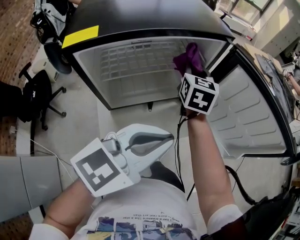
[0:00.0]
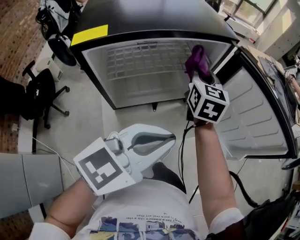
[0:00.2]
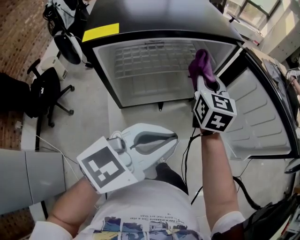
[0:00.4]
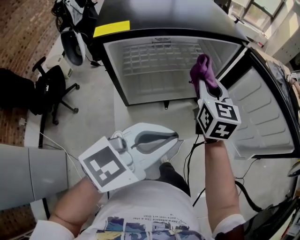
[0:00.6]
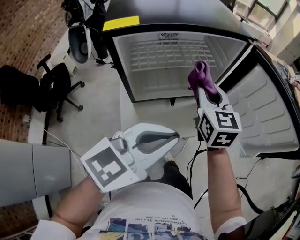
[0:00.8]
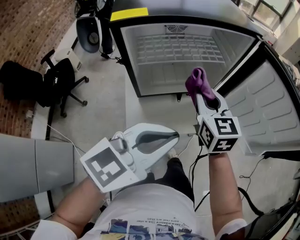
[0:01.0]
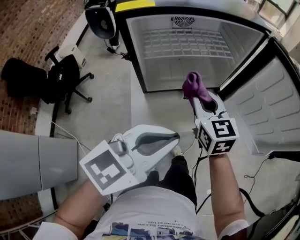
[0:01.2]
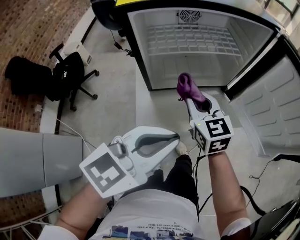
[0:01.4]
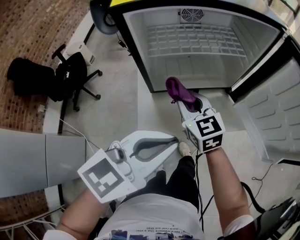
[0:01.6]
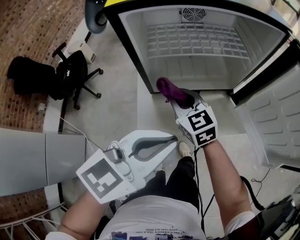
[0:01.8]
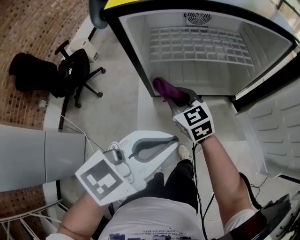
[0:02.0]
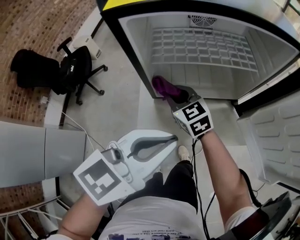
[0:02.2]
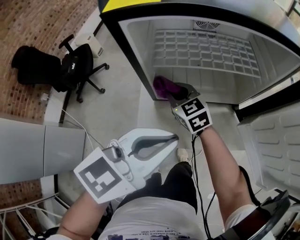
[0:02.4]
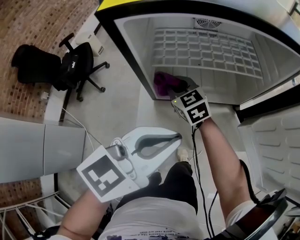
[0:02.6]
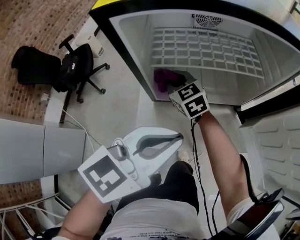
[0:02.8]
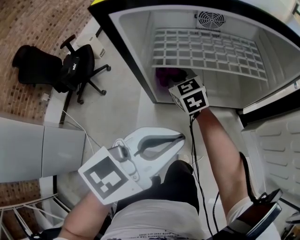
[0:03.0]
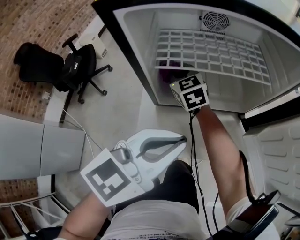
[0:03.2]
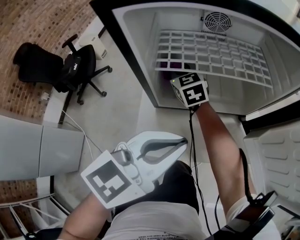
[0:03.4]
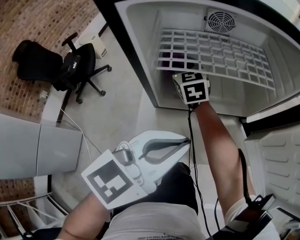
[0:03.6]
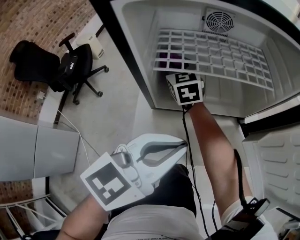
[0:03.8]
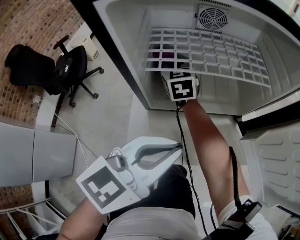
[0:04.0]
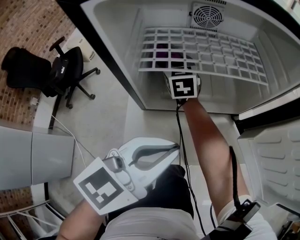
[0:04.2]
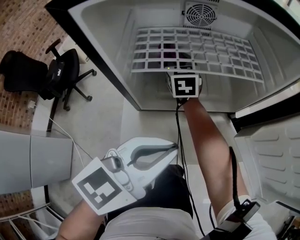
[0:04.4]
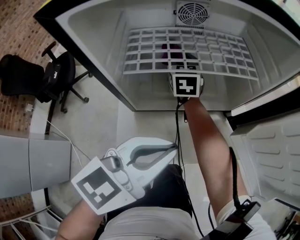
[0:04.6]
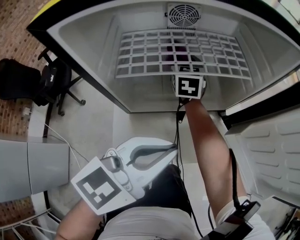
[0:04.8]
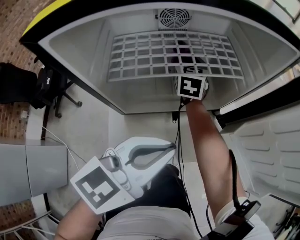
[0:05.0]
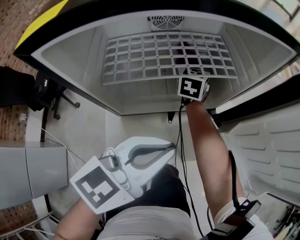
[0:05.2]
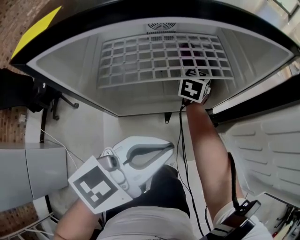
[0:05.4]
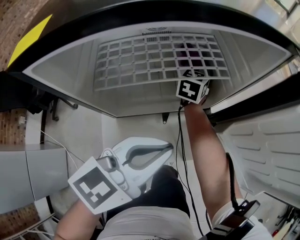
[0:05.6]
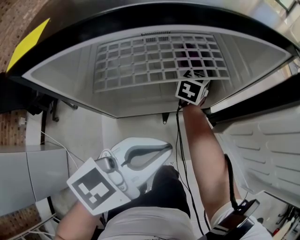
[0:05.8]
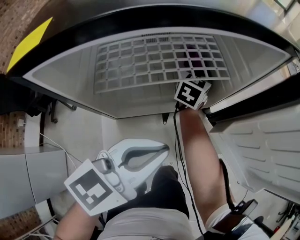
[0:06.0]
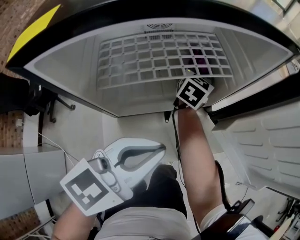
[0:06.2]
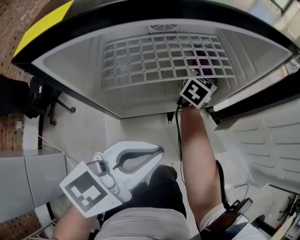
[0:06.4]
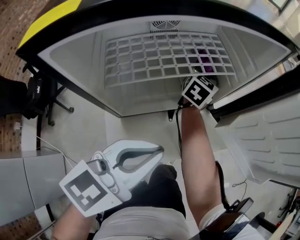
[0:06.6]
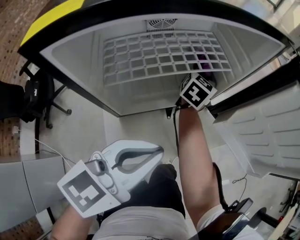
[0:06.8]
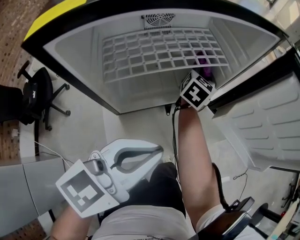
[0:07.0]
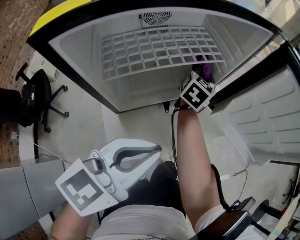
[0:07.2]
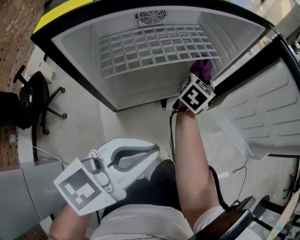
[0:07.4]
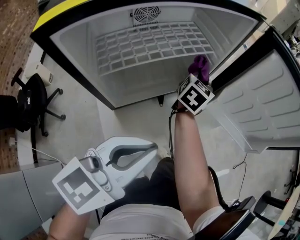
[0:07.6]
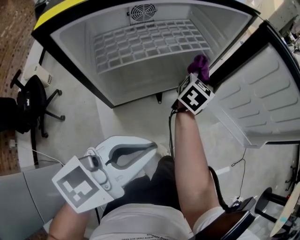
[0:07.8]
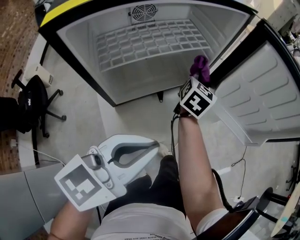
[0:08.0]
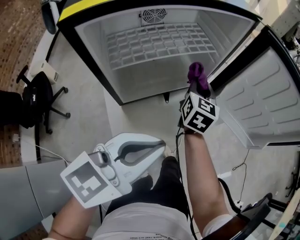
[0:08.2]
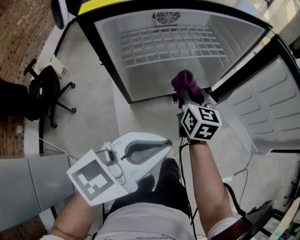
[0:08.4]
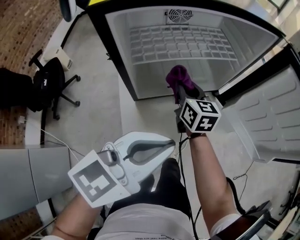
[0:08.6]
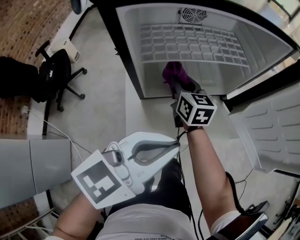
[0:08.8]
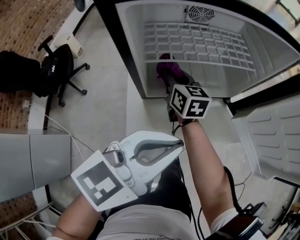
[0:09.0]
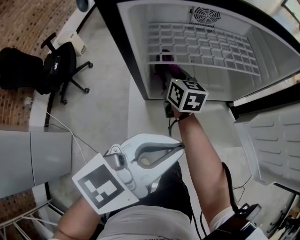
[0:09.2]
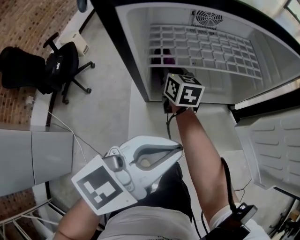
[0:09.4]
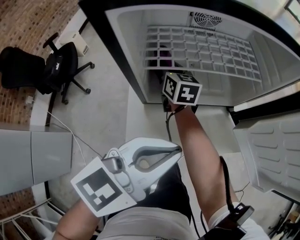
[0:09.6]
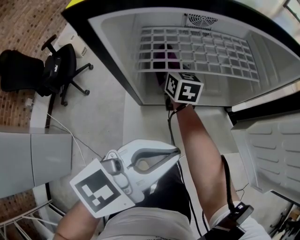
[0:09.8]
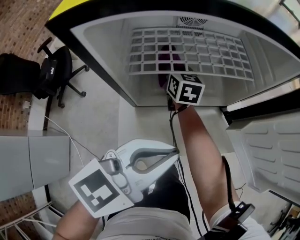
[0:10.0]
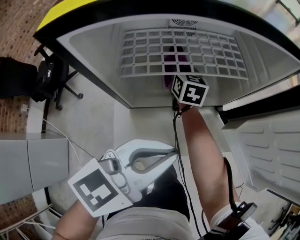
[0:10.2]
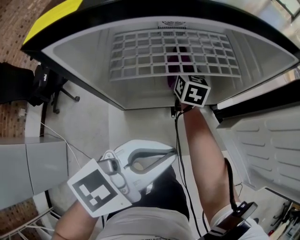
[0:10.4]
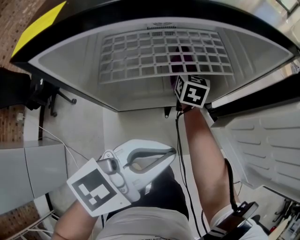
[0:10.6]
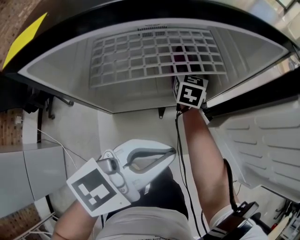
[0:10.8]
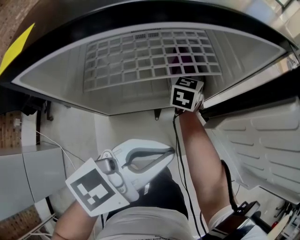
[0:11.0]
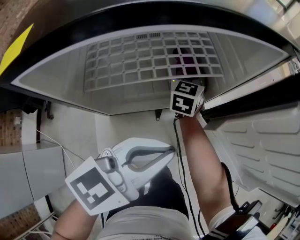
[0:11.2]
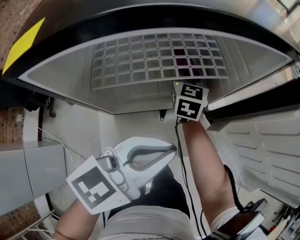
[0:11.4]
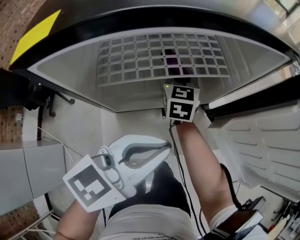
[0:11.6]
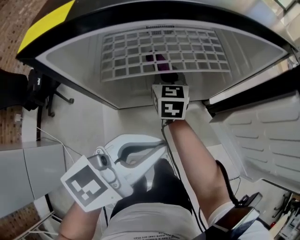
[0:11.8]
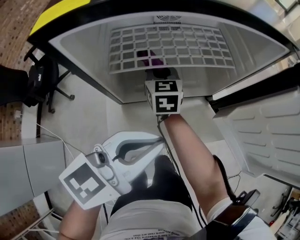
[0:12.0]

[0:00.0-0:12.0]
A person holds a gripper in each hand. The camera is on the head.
0:00.0 to 0:01.6: The right gripper ends up approximately 30 cm from where it was, and turns by approximately 40 degrees. The left gripper changes place by some 10 cm.
0:01.6 to 0:03.0: The right gripper shifts about 20 cm forward and to the left. Meanwhile the left gripper goes about 10 cm forward.
0:03.0 to 0:04.4: The right gripper goes roughly 10 cm forward and to the right, and changes its angle by roughly 30 degrees.
0:04.4 to 0:06.0: The right gripper travels to the right and forward by roughly 20 cm, and turns by about 40 degrees. Meanwhile the left gripper moves roughly 5 cm.
0:06.0 to 0:07.6: The right gripper goes some 15 cm to the right, and rotates approximately 20 degrees. The left gripper travels backward by about 10 cm.
0:07.6 to 0:09.0: The right gripper shifts by about 30 cm, and changes its angle by approximately 60 degrees.
0:09.0 to 0:10.4: The left gripper ends up some 5 cm from where it was. The right gripper travels forward and to the right by some 15 cm.
0:10.4 to 0:12.0: The right gripper travels backward and to the left by roughly 10 cm.

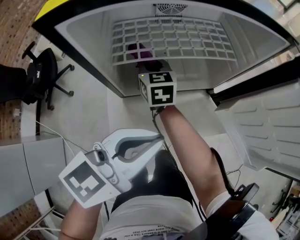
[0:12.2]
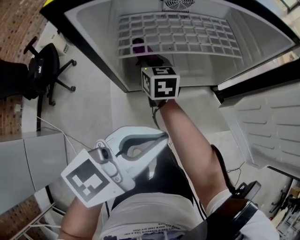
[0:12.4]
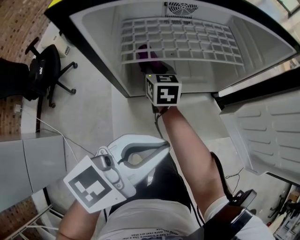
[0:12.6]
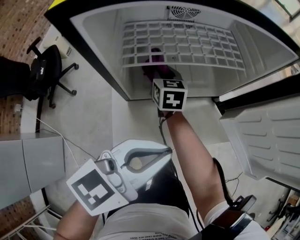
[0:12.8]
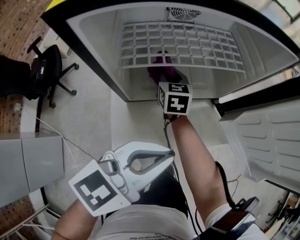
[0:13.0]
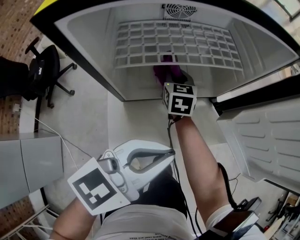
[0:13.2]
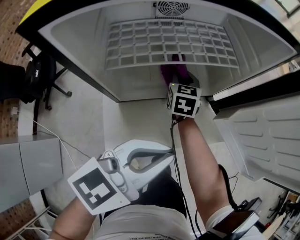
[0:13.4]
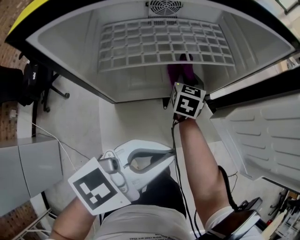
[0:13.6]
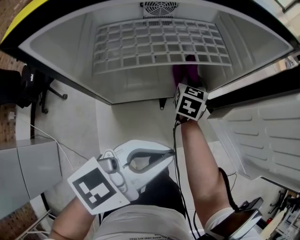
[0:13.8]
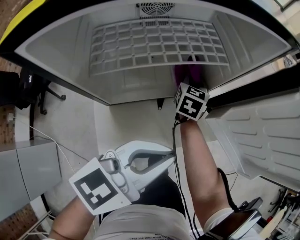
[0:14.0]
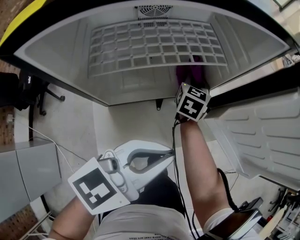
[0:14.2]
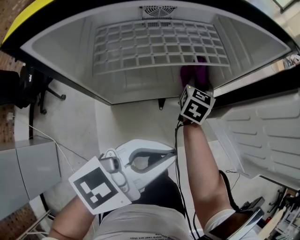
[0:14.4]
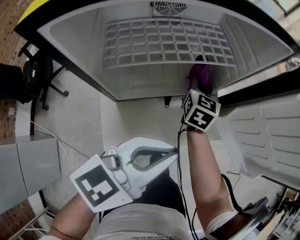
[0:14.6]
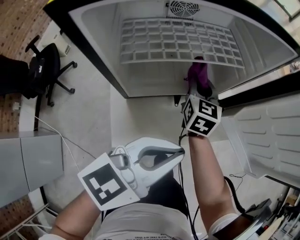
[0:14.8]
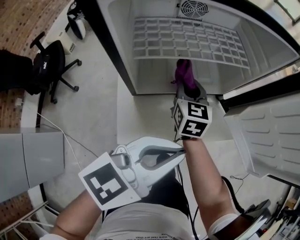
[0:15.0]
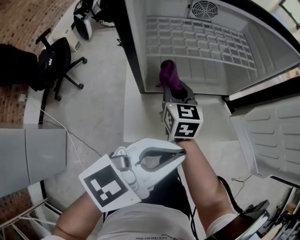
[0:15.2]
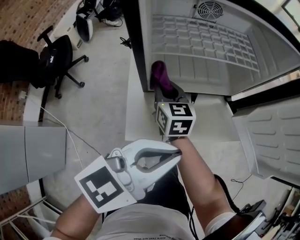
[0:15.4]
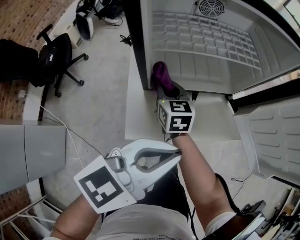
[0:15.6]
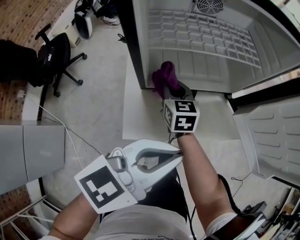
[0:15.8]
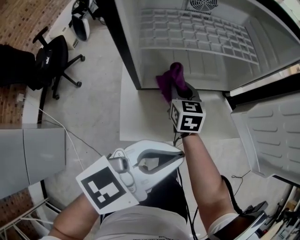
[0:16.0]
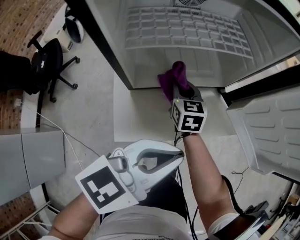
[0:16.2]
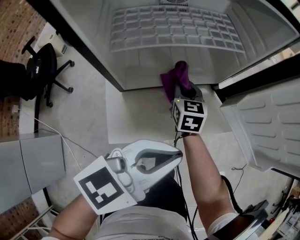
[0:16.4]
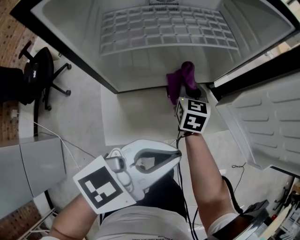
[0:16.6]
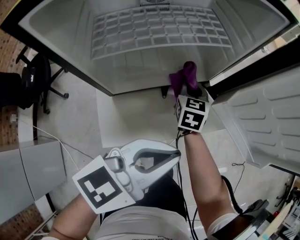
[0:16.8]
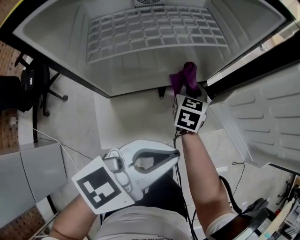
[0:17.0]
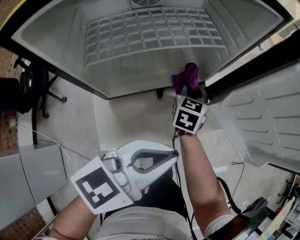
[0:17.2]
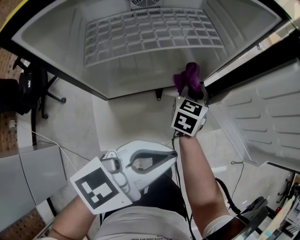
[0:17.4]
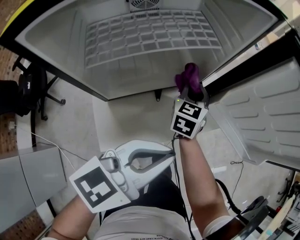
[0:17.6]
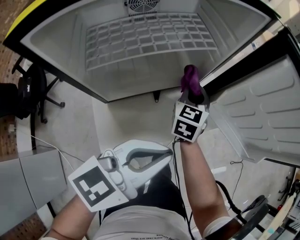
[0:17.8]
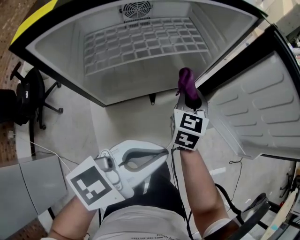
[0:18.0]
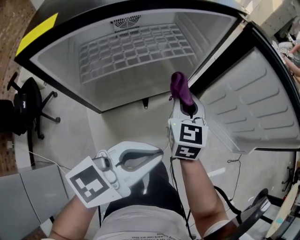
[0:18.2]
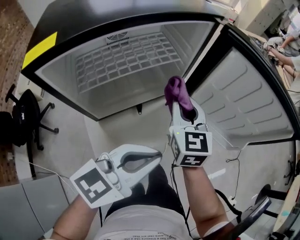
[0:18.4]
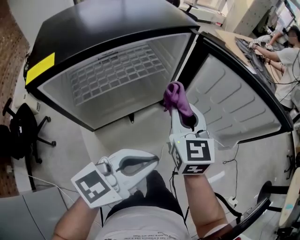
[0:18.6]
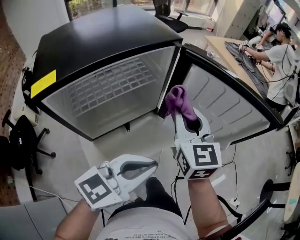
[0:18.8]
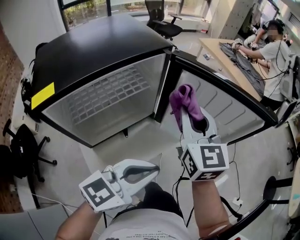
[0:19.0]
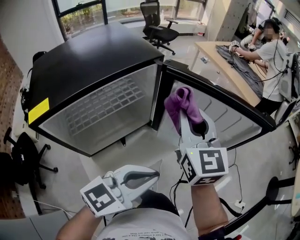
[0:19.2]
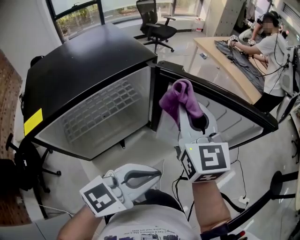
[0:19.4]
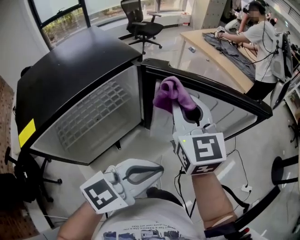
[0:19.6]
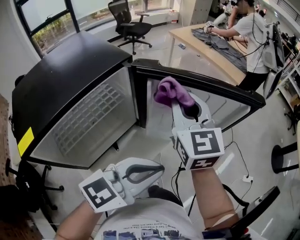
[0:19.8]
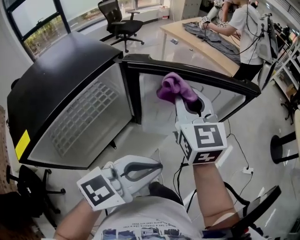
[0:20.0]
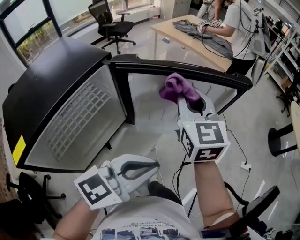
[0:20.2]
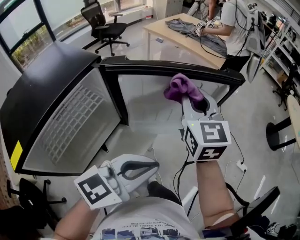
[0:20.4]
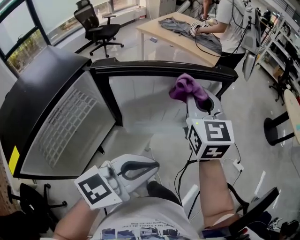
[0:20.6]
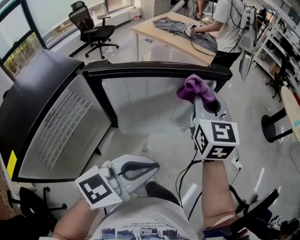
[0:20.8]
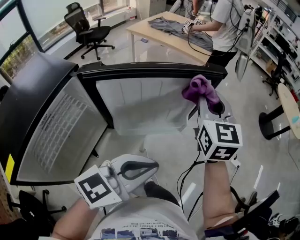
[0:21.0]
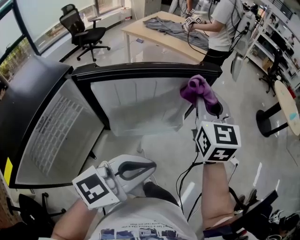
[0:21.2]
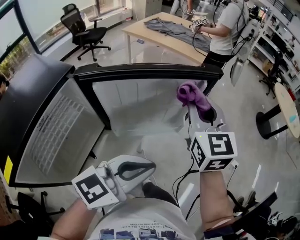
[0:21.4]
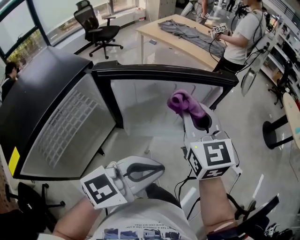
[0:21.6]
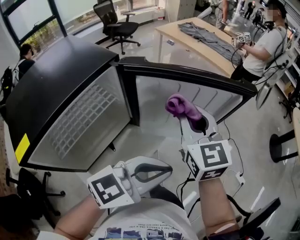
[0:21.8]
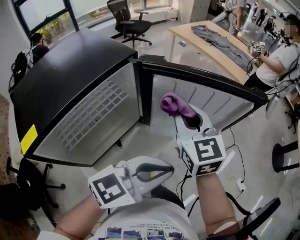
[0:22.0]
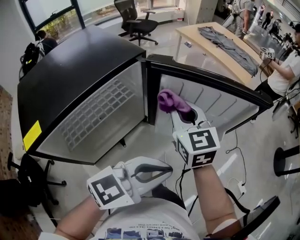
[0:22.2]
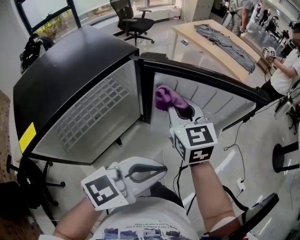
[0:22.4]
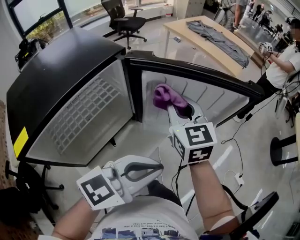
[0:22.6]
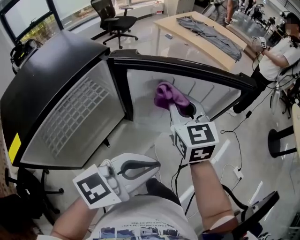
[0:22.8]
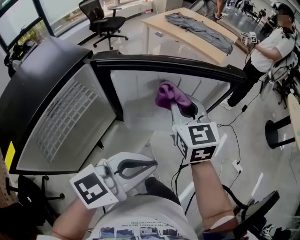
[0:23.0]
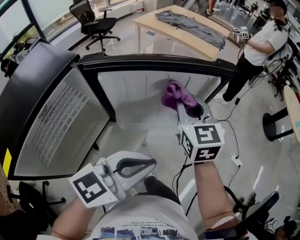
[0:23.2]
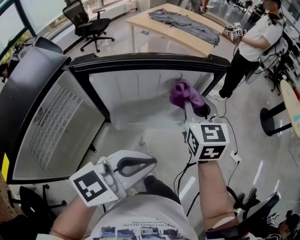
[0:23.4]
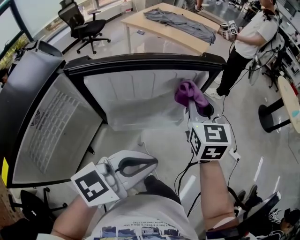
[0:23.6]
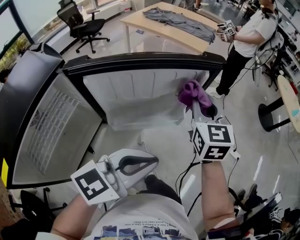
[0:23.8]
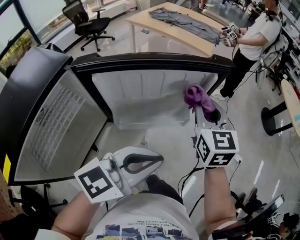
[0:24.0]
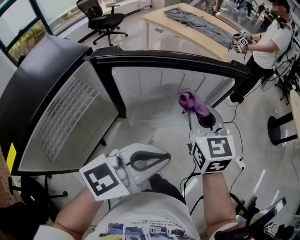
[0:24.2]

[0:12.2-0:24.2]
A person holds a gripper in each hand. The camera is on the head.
0:12.2 to 0:13.8: The right gripper heads to the right and forward, covering approximately 20 cm, and turns by roughly 30 degrees, while the left gripper travels to the right by some 5 cm.
0:13.8 to 0:15.2: The right gripper goes some 20 cm backward and to the left, and changes its angle by roughly 30 degrees, while the left gripper moves backward, some 5 cm.
0:15.2 to 0:16.6: The right gripper shifts about 15 cm to the right, forward and downward, and rotates about 20 degrees. Meanwhile the left gripper moves some 5 cm.
0:16.6 to 0:18.2: The right gripper travels upward and to the right by approximately 15 cm.
0:18.2 to 0:19.8: The right gripper goes approximately 25 cm upward and to the right, and turns by roughly 20 degrees; the left gripper goes approximately 10 cm to the right and upward, and changes its angle by approximately 30 degrees.
0:19.8 to 0:21.2: The left gripper heads to the right, covering about 5 cm. Meanwhile the right gripper heads to the right and forward, covering roughly 25 cm, and swivels some 30 degrees.
0:21.2 to 0:22.6: The right gripper shifts about 20 cm to the left, and rotates roughly 30 degrees, while the left gripper travels to the left by approximately 5 cm.
0:22.6 to 0:24.2: The left gripper shifts by about 5 cm; the right gripper shifts approximately 15 cm to the right.
